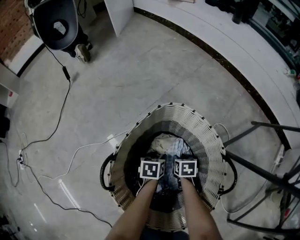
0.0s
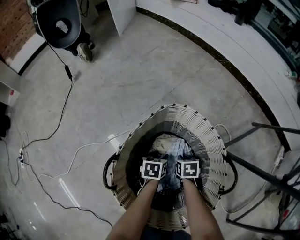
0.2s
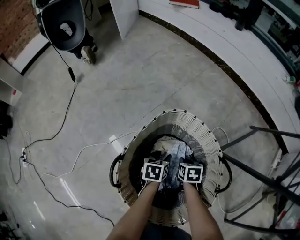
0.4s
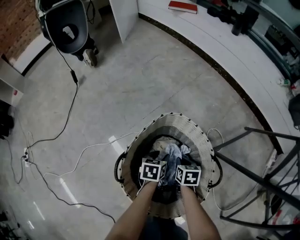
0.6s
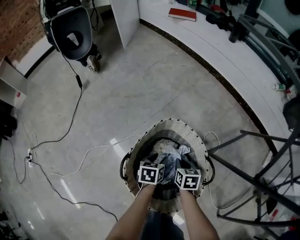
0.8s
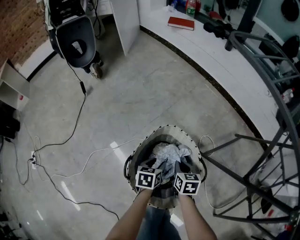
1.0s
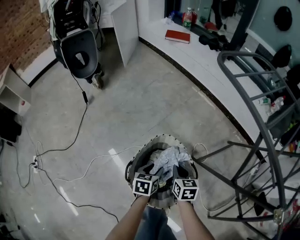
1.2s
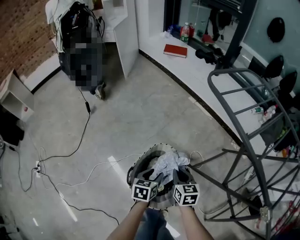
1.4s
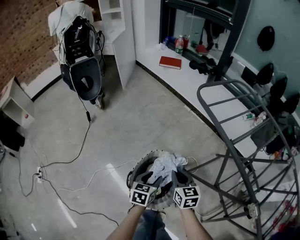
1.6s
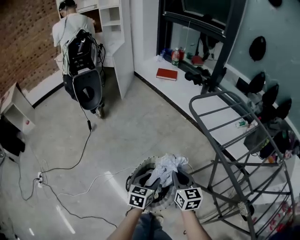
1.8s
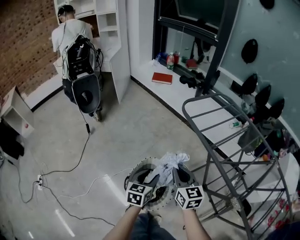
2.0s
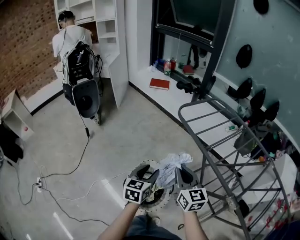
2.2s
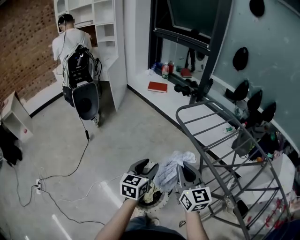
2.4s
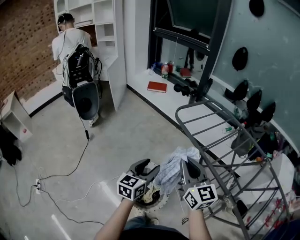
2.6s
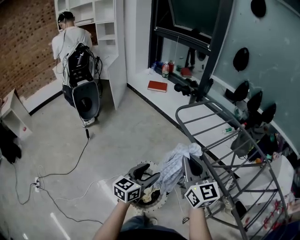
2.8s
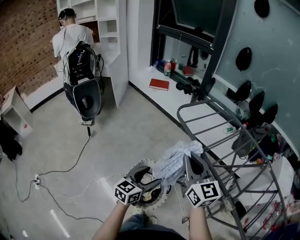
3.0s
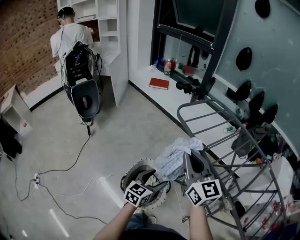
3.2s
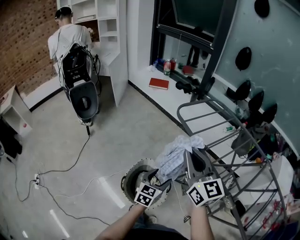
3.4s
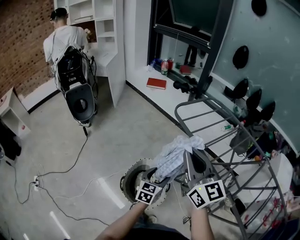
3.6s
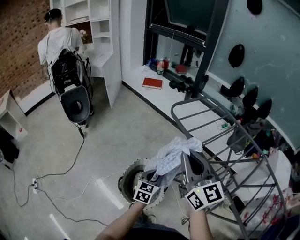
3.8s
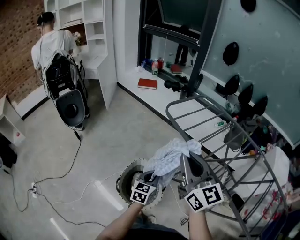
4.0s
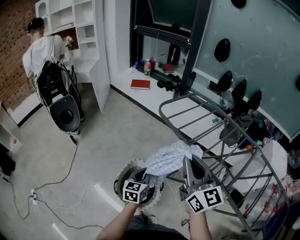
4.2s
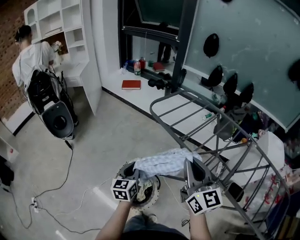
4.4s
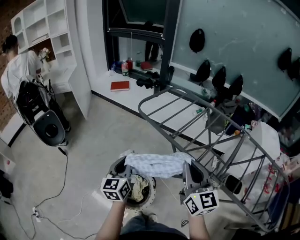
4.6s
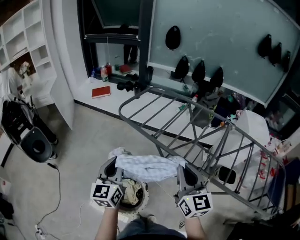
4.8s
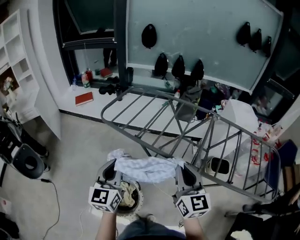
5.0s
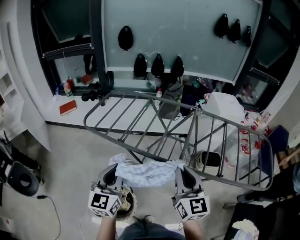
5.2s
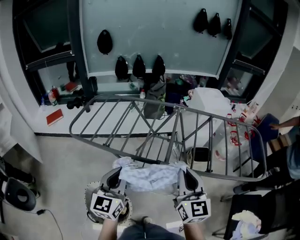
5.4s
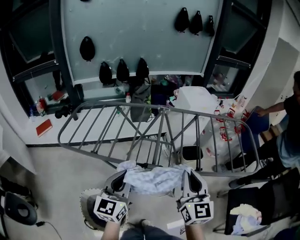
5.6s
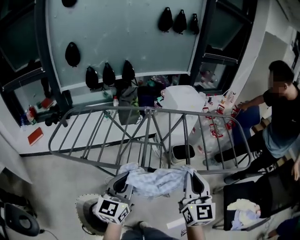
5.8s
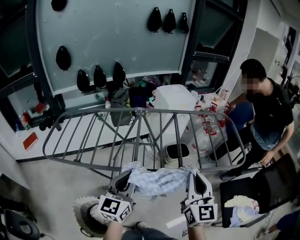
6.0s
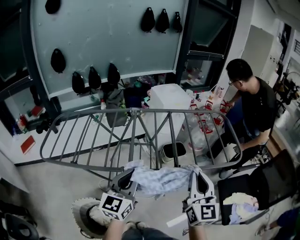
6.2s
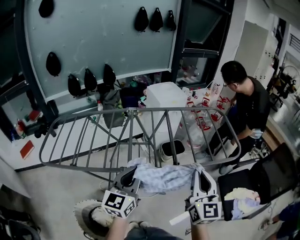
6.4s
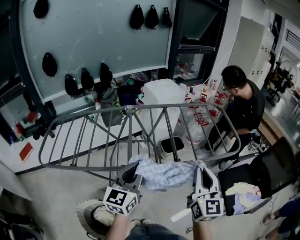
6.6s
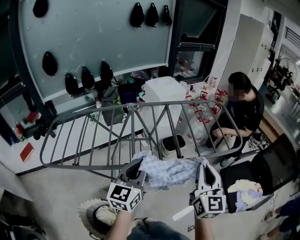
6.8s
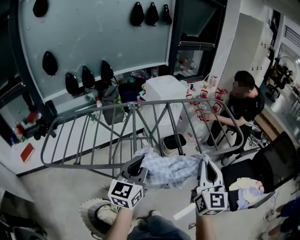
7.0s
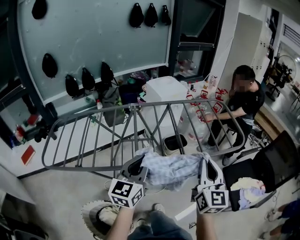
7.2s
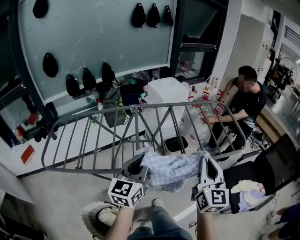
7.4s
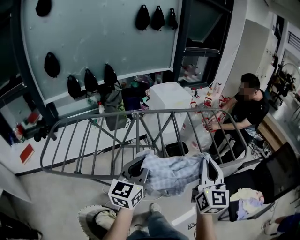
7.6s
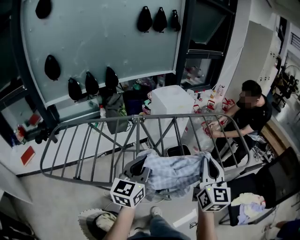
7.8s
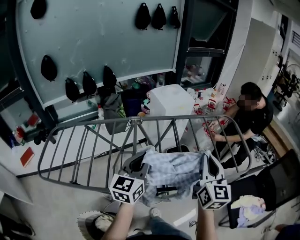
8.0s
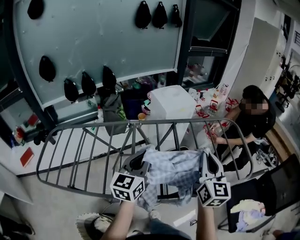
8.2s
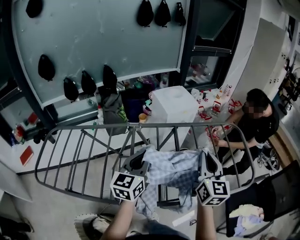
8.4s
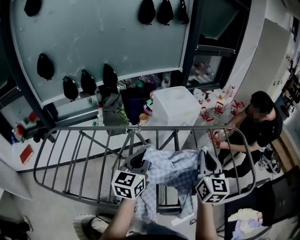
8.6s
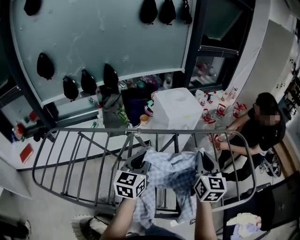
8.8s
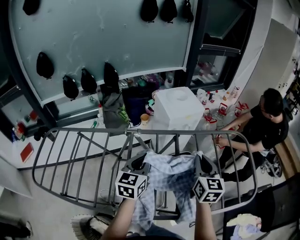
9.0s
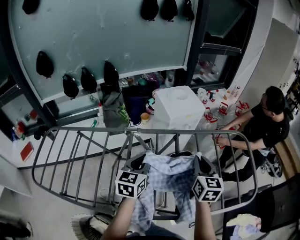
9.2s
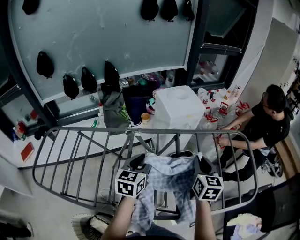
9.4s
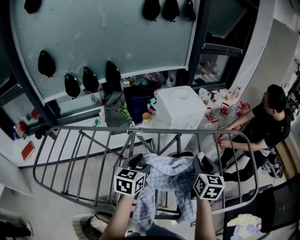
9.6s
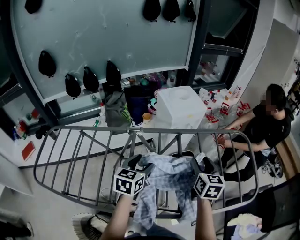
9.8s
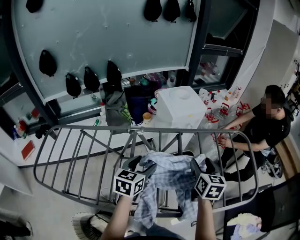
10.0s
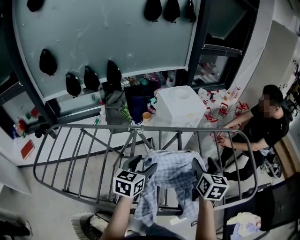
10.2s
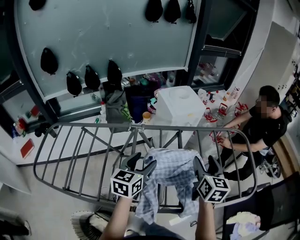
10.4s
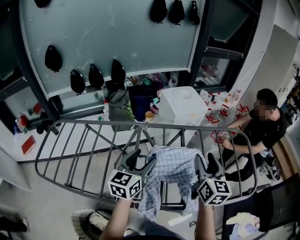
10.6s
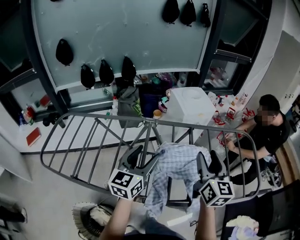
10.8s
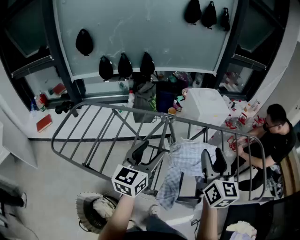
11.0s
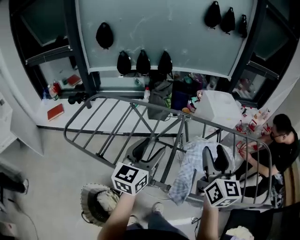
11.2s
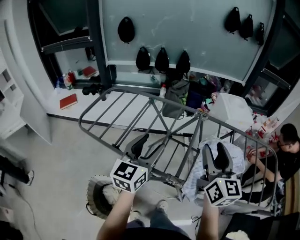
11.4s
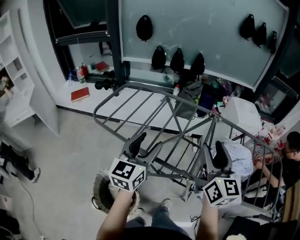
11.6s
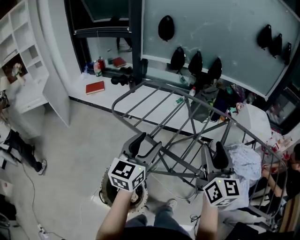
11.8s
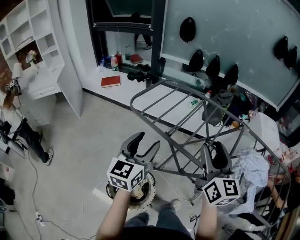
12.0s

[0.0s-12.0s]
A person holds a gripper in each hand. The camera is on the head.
0.0s to 1.6s: The grippers both shift upward by roughly 60 cm. The left gripper rotates some 20 degrees. The right gripper angles its fingers upward, by about 30 degrees, and closes.
1.6s to 3.0s: Both grippers travel together upward, roughly 30 cm. The left gripper changes its angle by approximately 30 degrees. The right gripper swivels approximately 30 degrees.
3.0s to 4.4s: The right gripper is displaced to the right and backward by roughly 10 cm, while the left gripper closes.
4.4s to 6.0s: The two grippers travel together, approximately 40 cm. The left gripper swivels roughly 60 degrees. Meanwhile the right gripper changes its angle by roughly 70 degrees.
6.0s to 7.6s: Both grippers travel together forward, about 10 cm.
7.6s to 9.0s: The grippers both shift forward by approximately 30 cm.
9.0s to 10.4s: The right gripper opens. The left gripper opens its fingers.
10.4s to 12.0s: Both grippers are carried roughly 50 cm. The left gripper turns by roughly 50 degrees; the right gripper changes its angle by roughly 50 degrees.

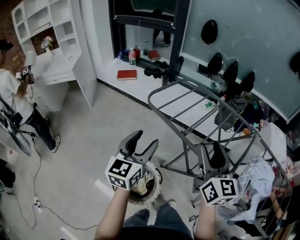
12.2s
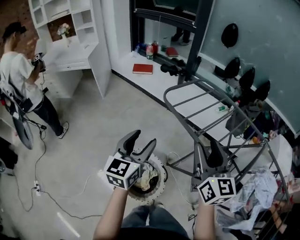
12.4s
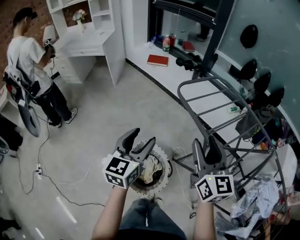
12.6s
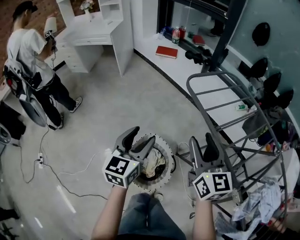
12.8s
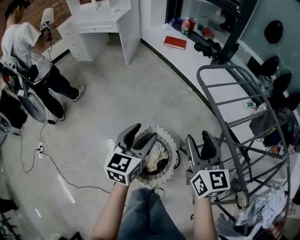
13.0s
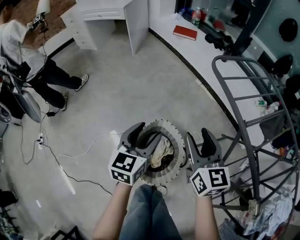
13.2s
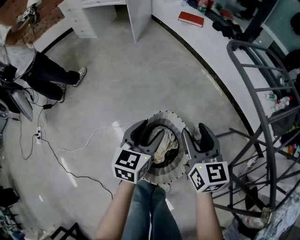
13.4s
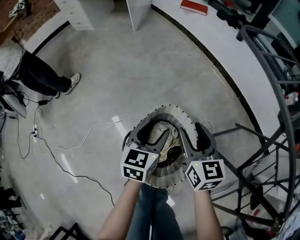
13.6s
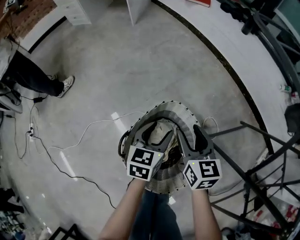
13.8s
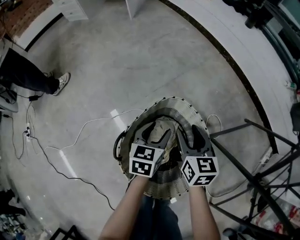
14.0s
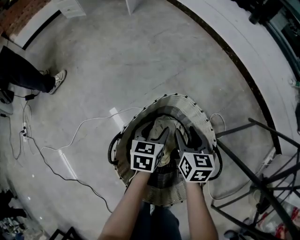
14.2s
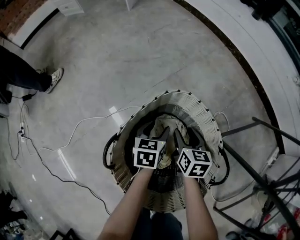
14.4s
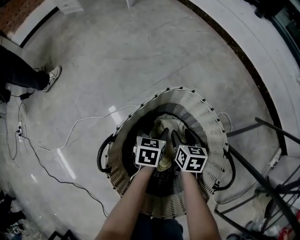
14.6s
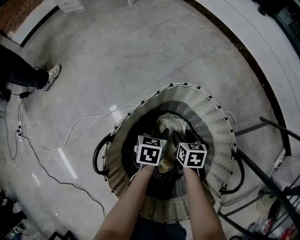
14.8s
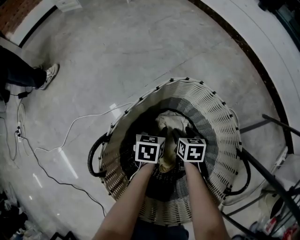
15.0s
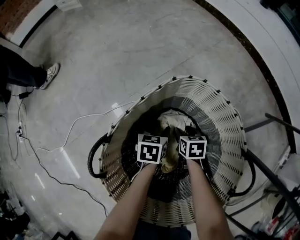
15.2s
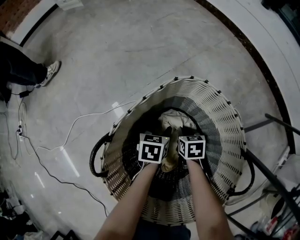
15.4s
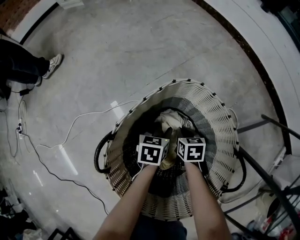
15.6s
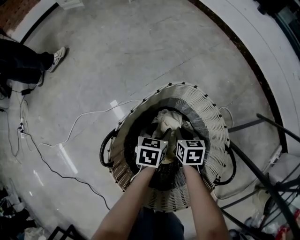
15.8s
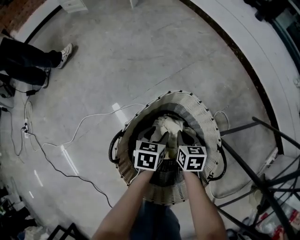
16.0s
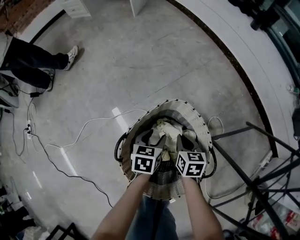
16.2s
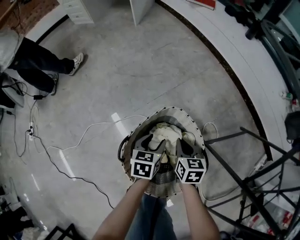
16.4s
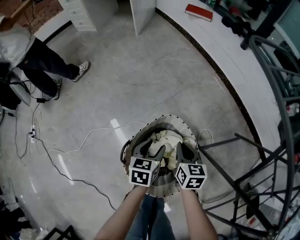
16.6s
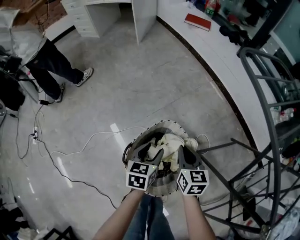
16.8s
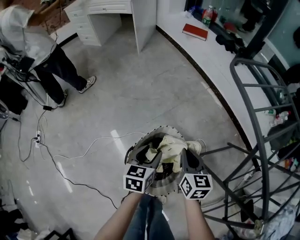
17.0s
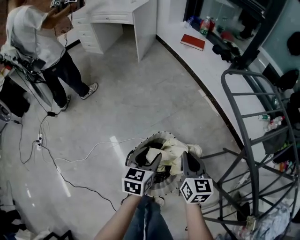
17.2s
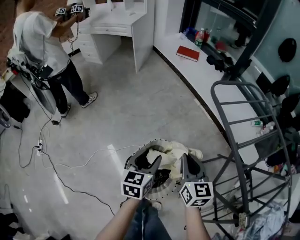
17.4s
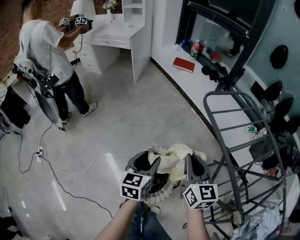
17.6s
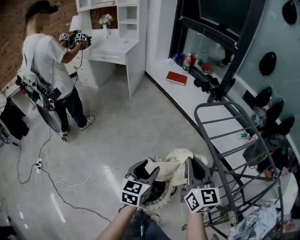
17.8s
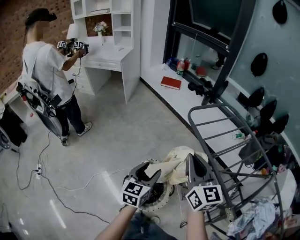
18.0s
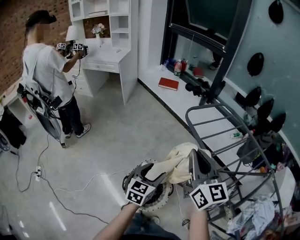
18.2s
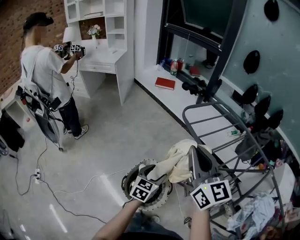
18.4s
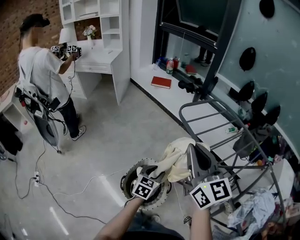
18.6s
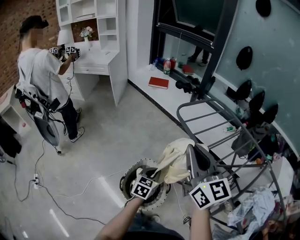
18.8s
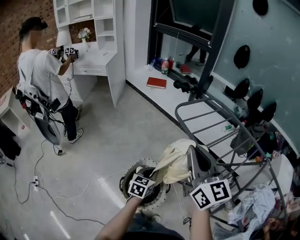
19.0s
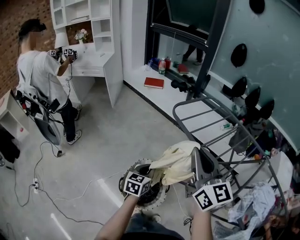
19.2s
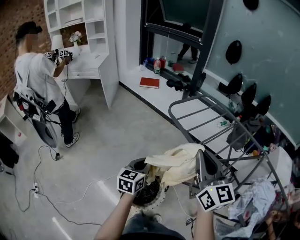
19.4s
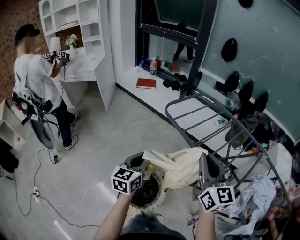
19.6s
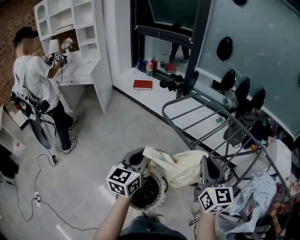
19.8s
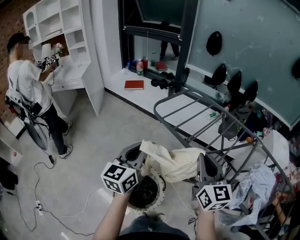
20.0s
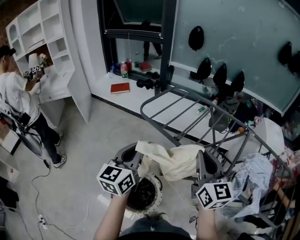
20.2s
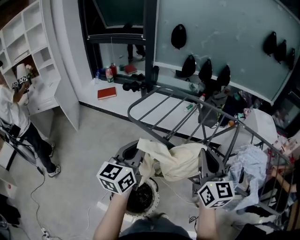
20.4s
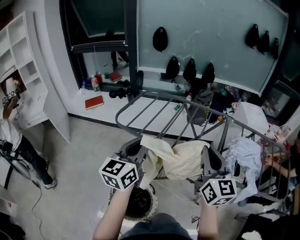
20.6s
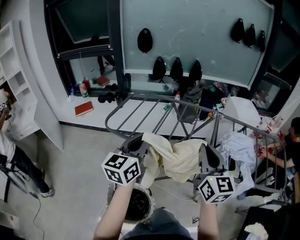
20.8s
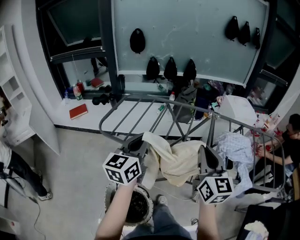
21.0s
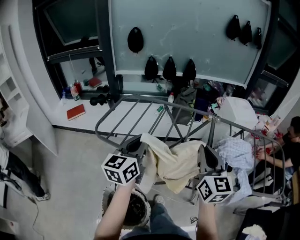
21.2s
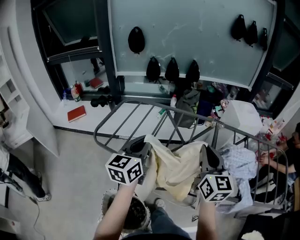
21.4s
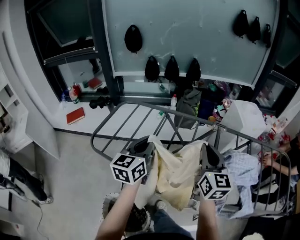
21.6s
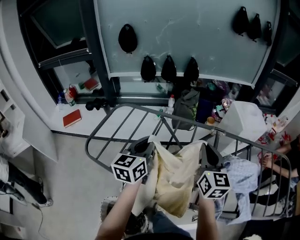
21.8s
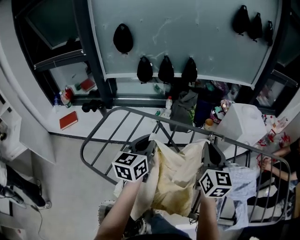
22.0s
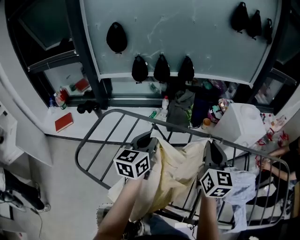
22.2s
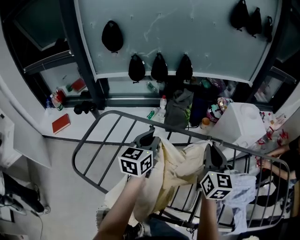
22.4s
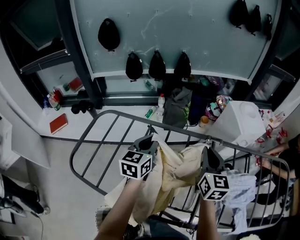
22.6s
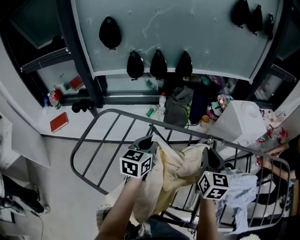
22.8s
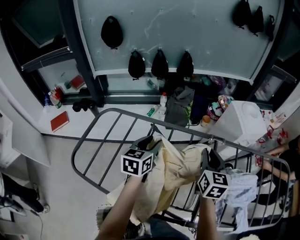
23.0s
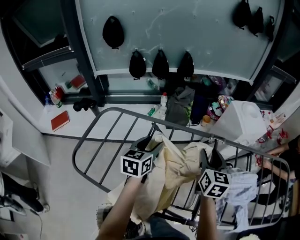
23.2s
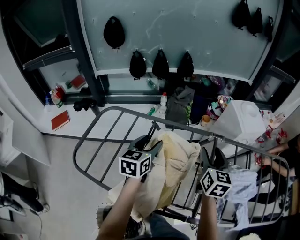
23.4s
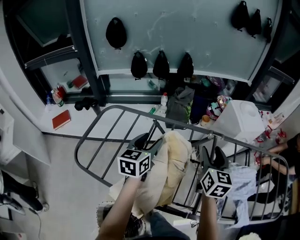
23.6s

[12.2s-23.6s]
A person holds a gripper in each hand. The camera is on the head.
12.2s to 13.6s: Both grippers move downward, roughly 40 cm. The right gripper swivels some 40 degrees, while the left gripper turns by approximately 30 degrees.
13.6s to 15.0s: The two grippers go some 50 cm downward. The left gripper rotates some 30 degrees; the right gripper tilts its fingers about 30 degrees downward.
15.0s to 16.4s: Both grippers travel together upward, approximately 30 cm. The right gripper closes its fingers.
16.4s to 17.8s: Both grippers travel together upward, approximately 50 cm. The left gripper changes its angle by roughly 30 degrees; the right gripper angles its fingers upward, by about 30 degrees.
17.8s to 19.4s: The left gripper closes, while the right gripper is displaced upward, to the right and backward by about 15 cm.
19.4s to 20.8s: The left gripper shifts by roughly 30 cm, and turns by some 40 degrees. The right gripper moves about 25 cm, and swivels approximately 40 degrees.
20.8s to 22.2s: Both grippers travel together forward, about 35 cm.
22.2s to 23.6s: The right gripper opens. Meanwhile the left gripper heads downward, covering some 5 cm, and opens its fingers.
